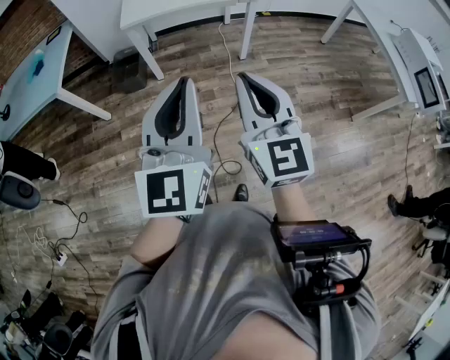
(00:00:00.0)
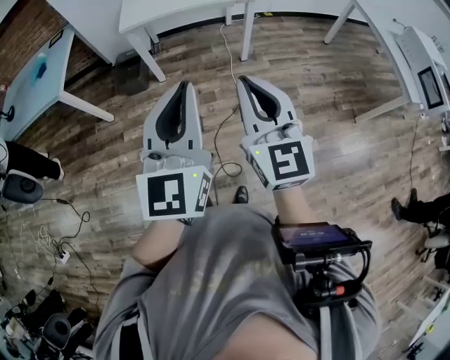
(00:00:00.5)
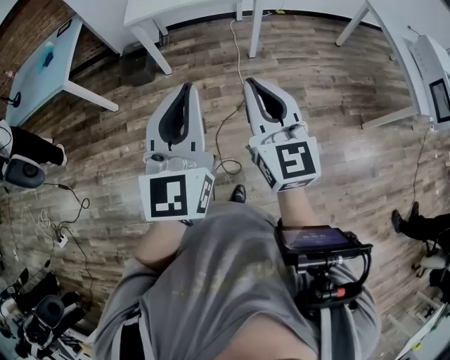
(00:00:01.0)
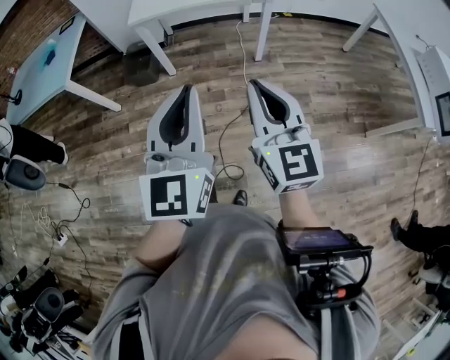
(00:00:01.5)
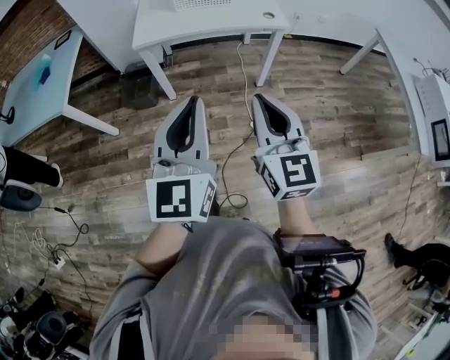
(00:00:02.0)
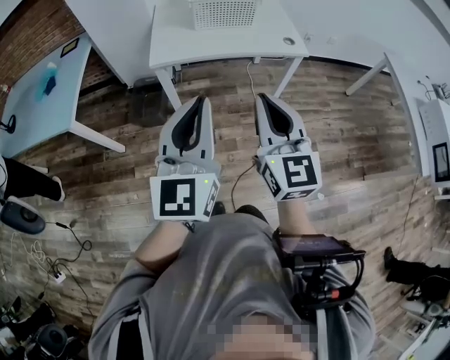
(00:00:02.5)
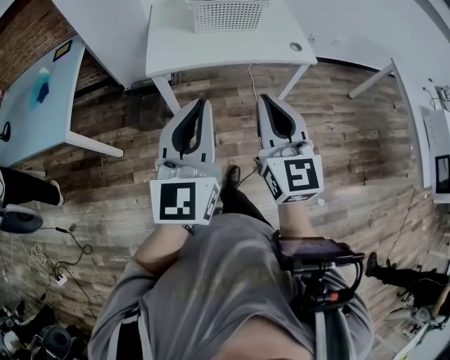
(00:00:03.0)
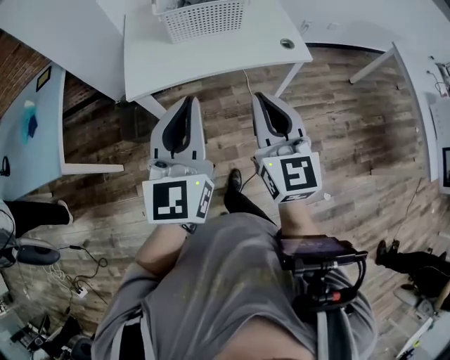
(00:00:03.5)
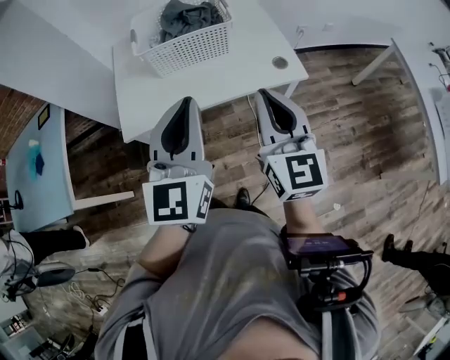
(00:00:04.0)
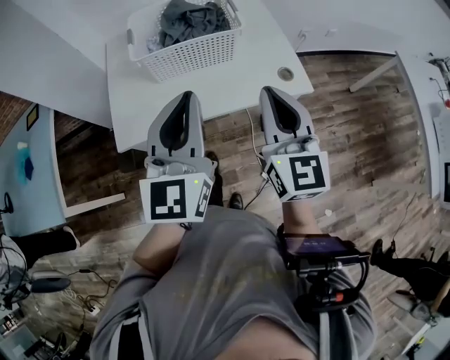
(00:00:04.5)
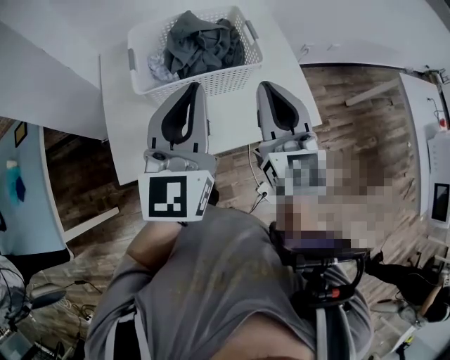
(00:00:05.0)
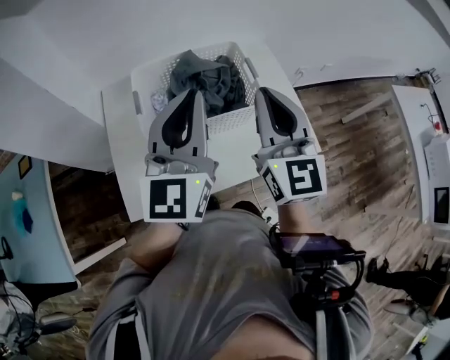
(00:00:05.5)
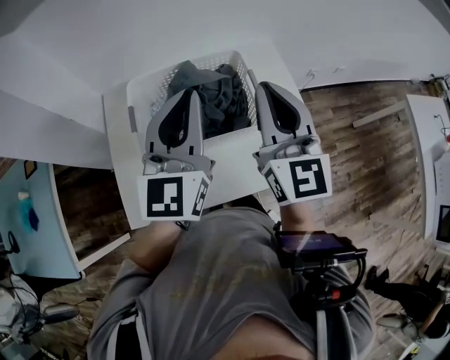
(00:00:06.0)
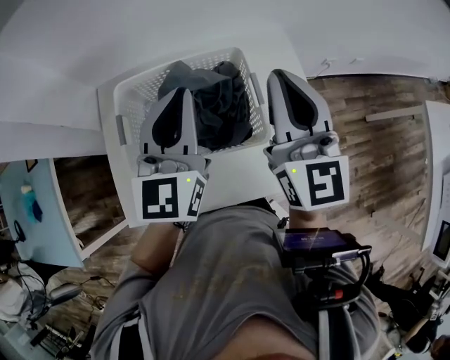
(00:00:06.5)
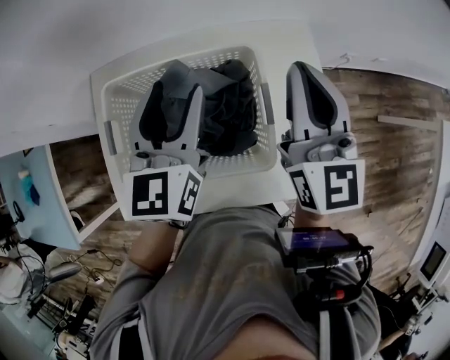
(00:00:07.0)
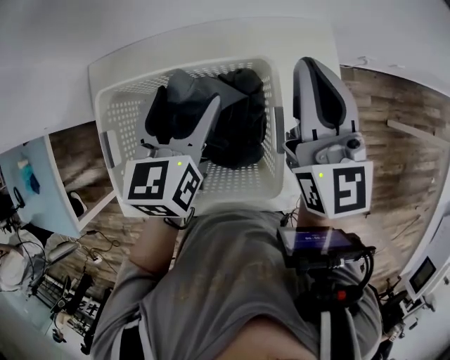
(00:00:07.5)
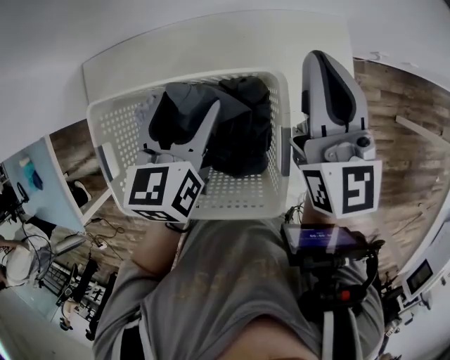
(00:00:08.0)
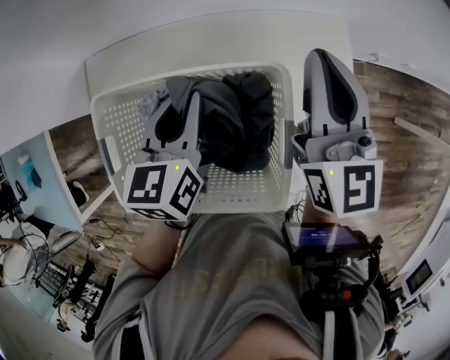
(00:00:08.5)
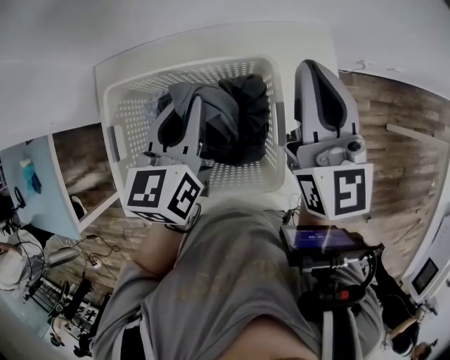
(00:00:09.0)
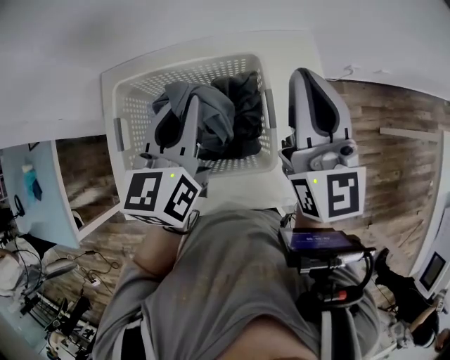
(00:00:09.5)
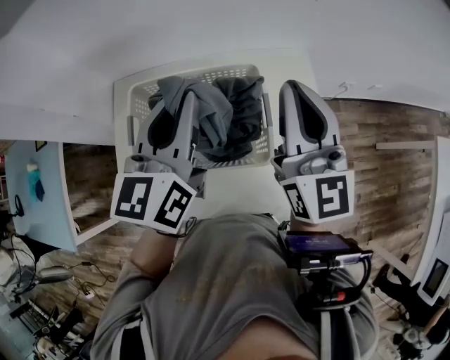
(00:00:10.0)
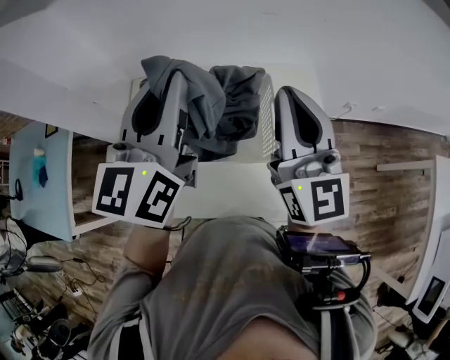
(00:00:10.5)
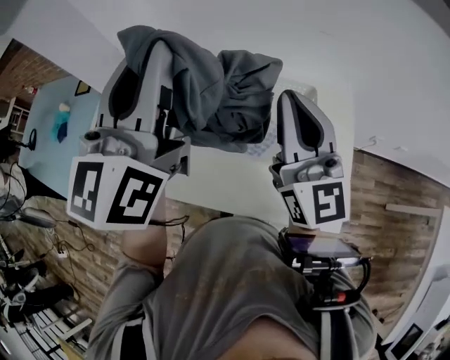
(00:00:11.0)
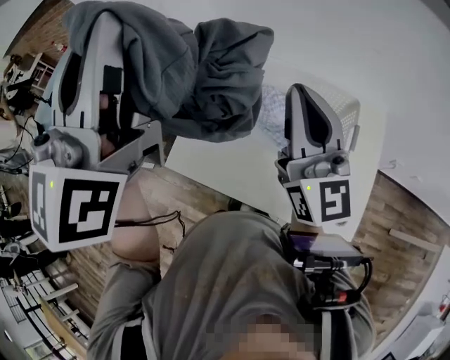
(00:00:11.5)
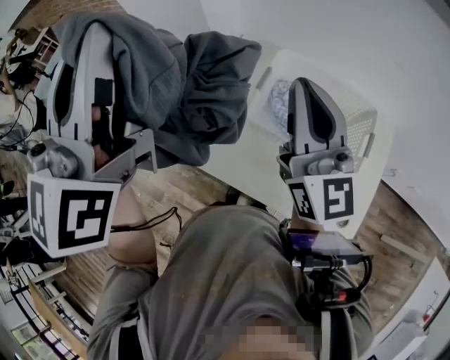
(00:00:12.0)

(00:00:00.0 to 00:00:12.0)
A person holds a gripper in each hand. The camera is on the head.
00:00:00.0 - 00:00:02.0: The two grippers go about 20 cm forward.
00:00:02.0 - 00:00:04.0: The pair of grippers is taken forward, some 40 cm.
00:00:04.0 - 00:00:06.0: Both grippers move forward, approximately 35 cm.
00:00:06.0 - 00:00:08.0: The right gripper is displaced forward and downward by approximately 30 cm. Meanwhile the left gripper is displaced downward and forward by approximately 30 cm, points its fingers about 40 degrees further downward, and opens.
00:00:08.0 - 00:00:10.0: The right gripper moves backward and upward, some 20 cm, while the left gripper goes roughly 20 cm upward and backward, changes its angle by about 30 degrees, and closes up.
00:00:10.0 - 00:00:12.0: The right gripper changes place by roughly 30 cm, and turns by approximately 30 degrees. The left gripper ends up roughly 40 cm from where it was, and rotates approximately 40 degrees.

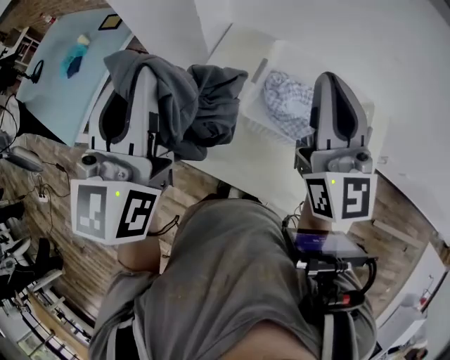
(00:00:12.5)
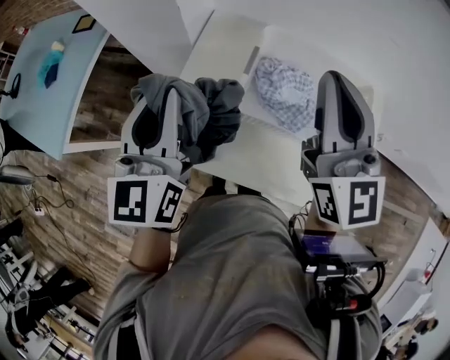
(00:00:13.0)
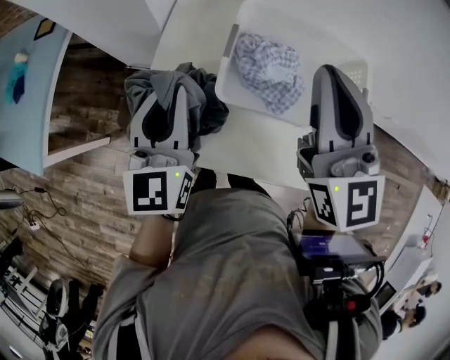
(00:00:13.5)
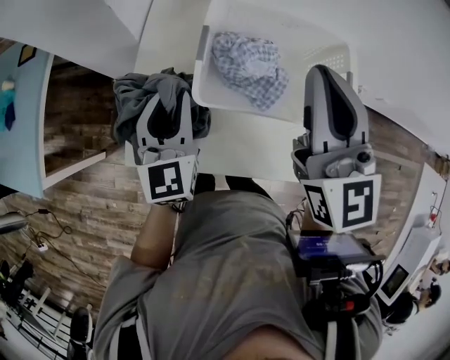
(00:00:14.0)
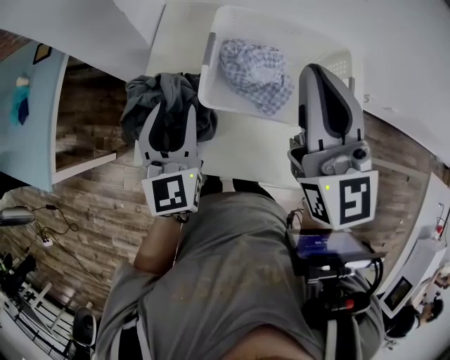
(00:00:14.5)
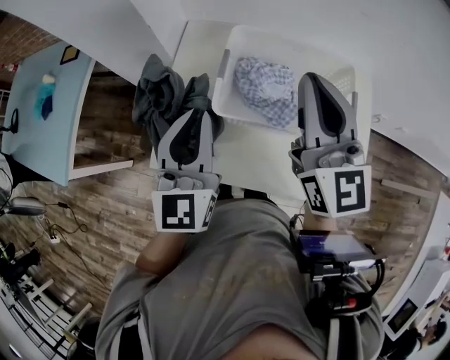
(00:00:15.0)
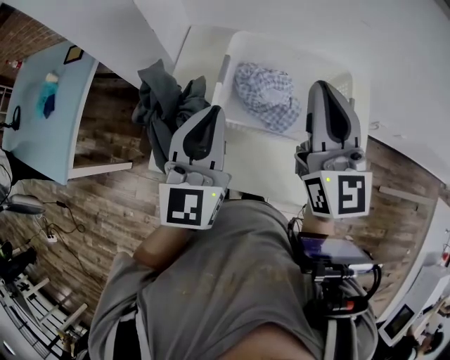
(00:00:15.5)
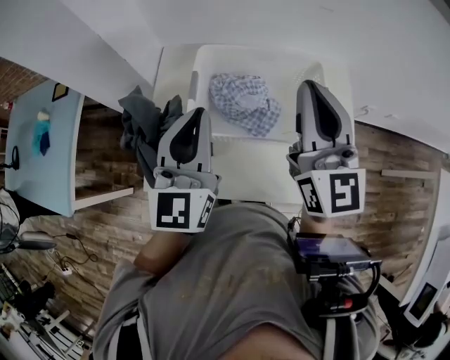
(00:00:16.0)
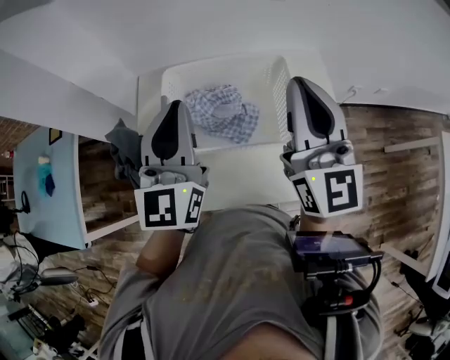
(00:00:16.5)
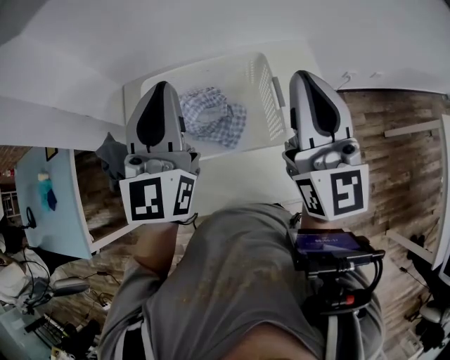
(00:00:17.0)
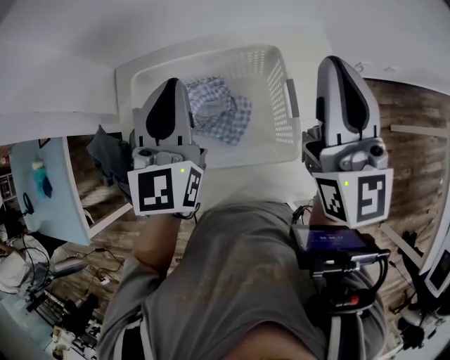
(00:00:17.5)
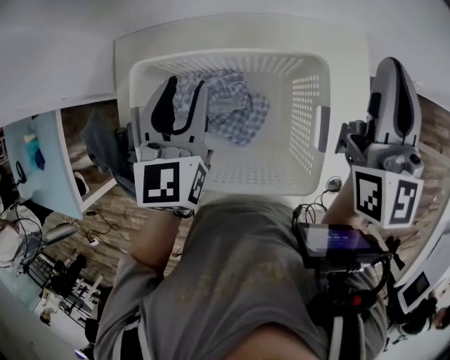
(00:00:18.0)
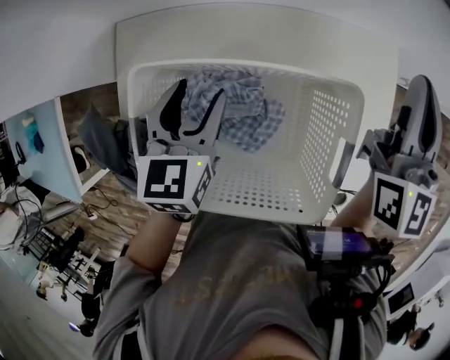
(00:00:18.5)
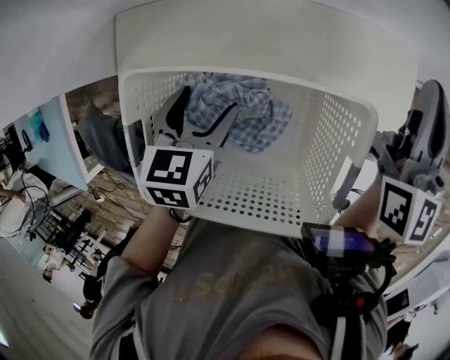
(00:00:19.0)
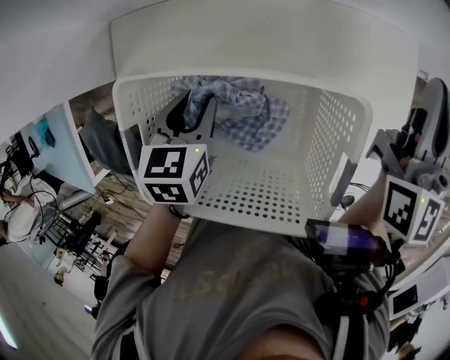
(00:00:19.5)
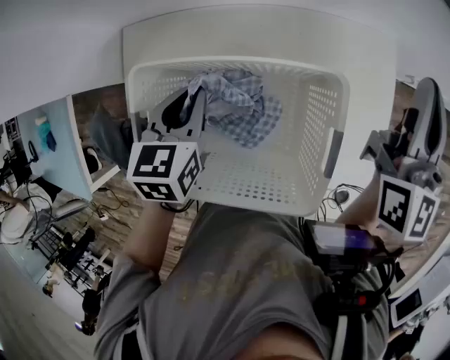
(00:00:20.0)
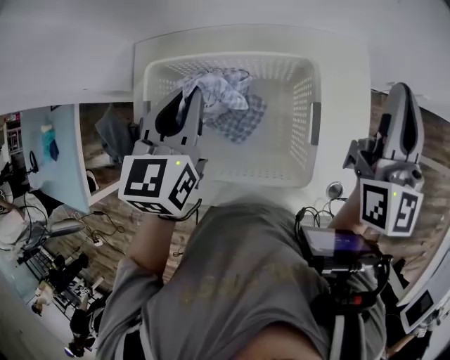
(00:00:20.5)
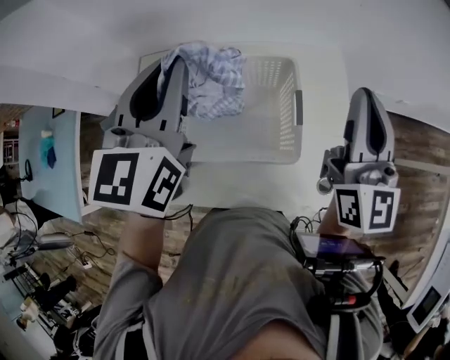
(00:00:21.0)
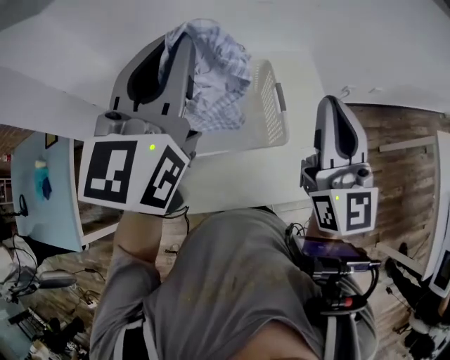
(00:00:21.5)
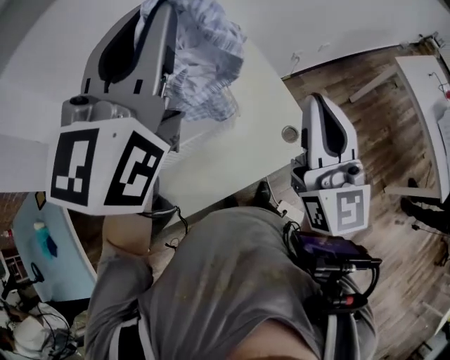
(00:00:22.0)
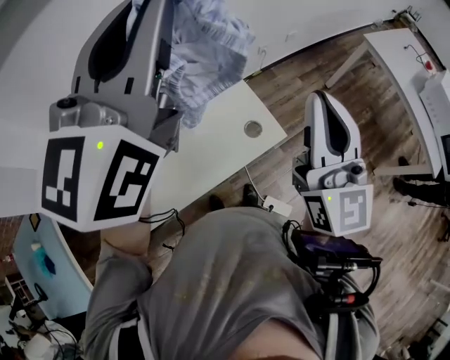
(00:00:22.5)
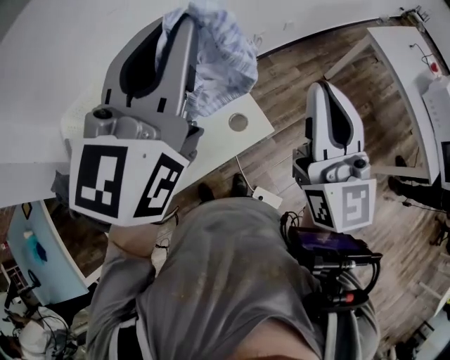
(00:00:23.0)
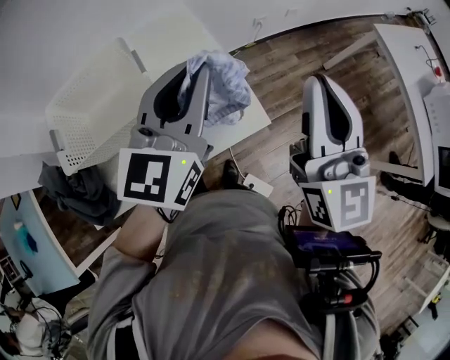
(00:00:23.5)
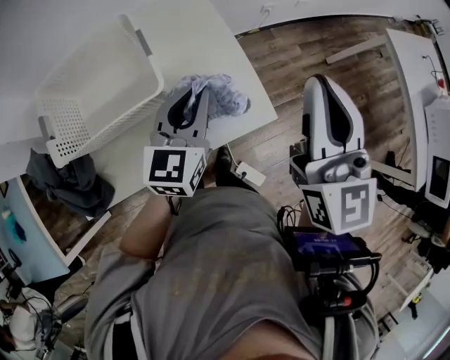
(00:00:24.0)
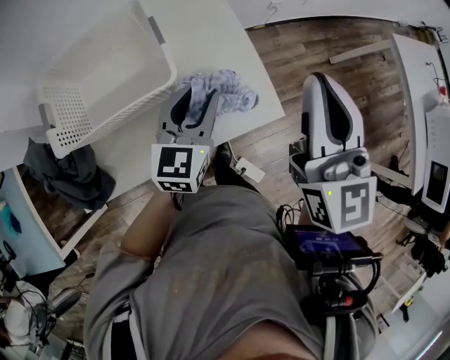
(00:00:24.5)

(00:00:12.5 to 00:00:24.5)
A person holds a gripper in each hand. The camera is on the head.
00:00:12.5 - 00:00:14.5: The left gripper travels downward by about 25 cm, and opens up. The right gripper is displaced downward by approximately 5 cm.
00:00:14.5 - 00:00:16.5: The left gripper goes roughly 20 cm upward and to the right, changes its angle by about 20 degrees, and closes its fingers. Meanwhile the right gripper moves to the right, about 15 cm.
00:00:16.5 - 00:00:18.5: The right gripper shifts about 30 cm forward, downward and to the right; the left gripper travels downward and forward by roughly 30 cm, angles its fingers downward, by about 40 degrees, and opens its fingers.
00:00:18.5 - 00:00:20.5: The right gripper travels backward and upward by about 10 cm. The left gripper shifts approximately 10 cm upward, and closes its fingers.
00:00:20.5 - 00:00:22.5: The left gripper ends up some 40 cm from where it was, and tilts its fingers about 40 degrees upward; the right gripper shifts by about 40 cm, and turns by approximately 30 degrees.
00:00:22.5 - 00:00:24.5: The right gripper is displaced downward and forward by about 10 cm. Meanwhile the left gripper shifts roughly 40 cm downward, and tilts its fingers roughly 30 degrees downward.

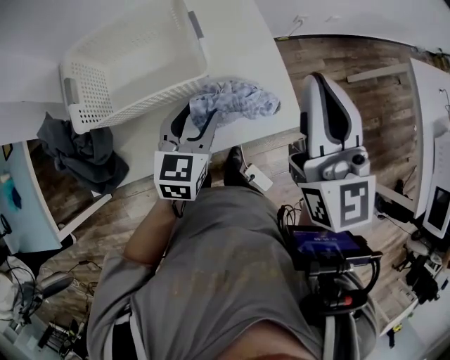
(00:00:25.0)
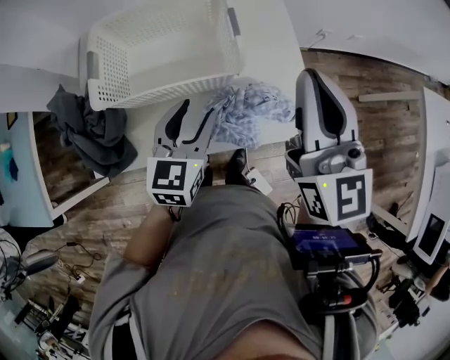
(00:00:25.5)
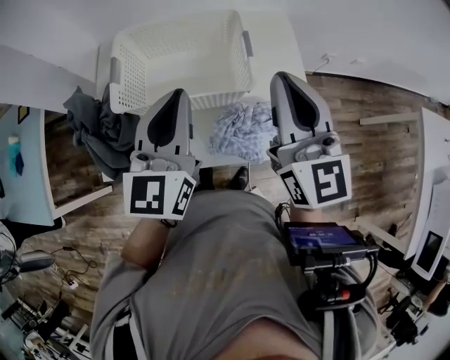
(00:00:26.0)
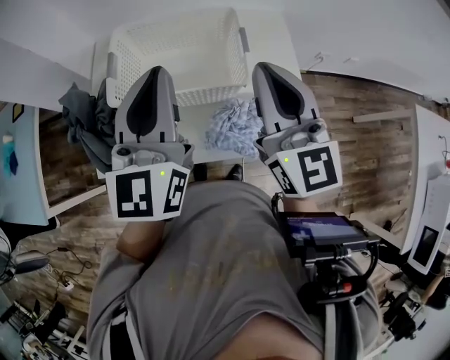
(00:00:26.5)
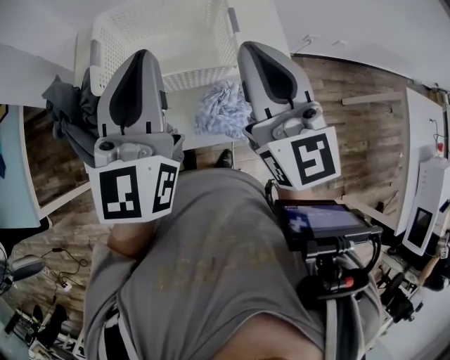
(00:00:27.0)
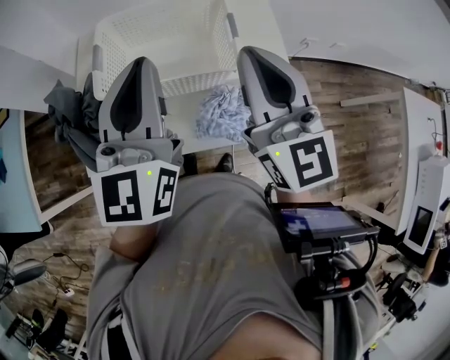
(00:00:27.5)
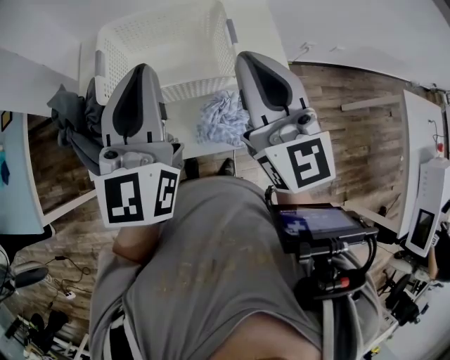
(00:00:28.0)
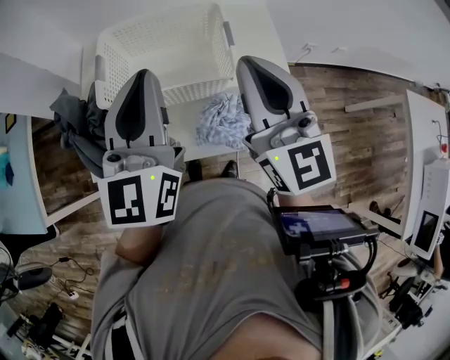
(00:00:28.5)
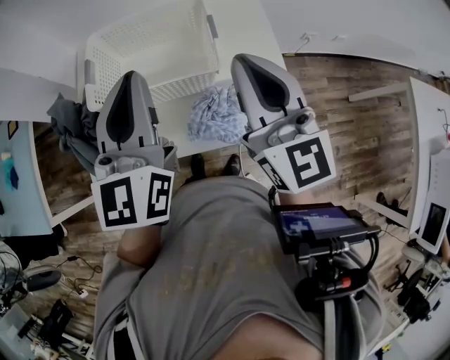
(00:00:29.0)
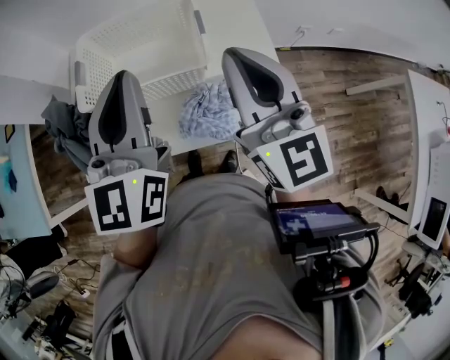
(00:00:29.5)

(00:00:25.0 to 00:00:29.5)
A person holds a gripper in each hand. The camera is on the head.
00:00:25.0 - 00:00:27.0: The left gripper shifts some 25 cm upward and to the left, tips its fingers upward by approximately 30 degrees, and closes its fingers; the right gripper heads to the left, covering roughly 15 cm, and turns by roughly 20 degrees.
00:00:27.0 - 00:00:29.5: The right gripper is displaced to the right by roughly 5 cm.
